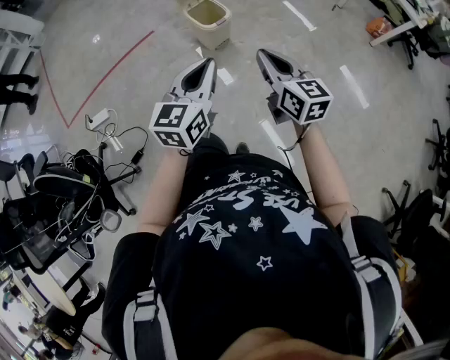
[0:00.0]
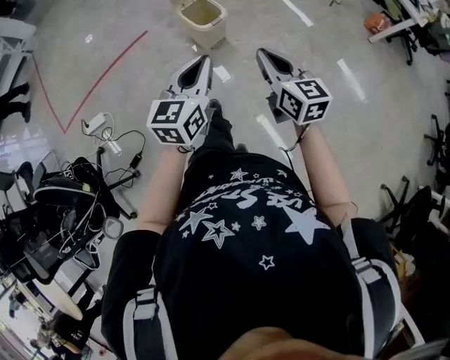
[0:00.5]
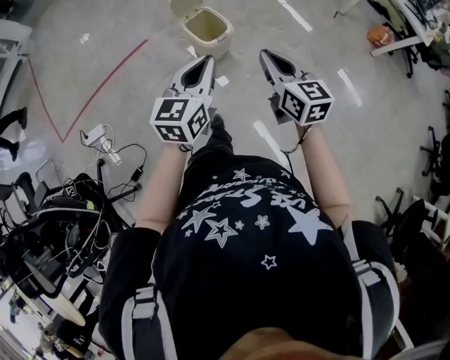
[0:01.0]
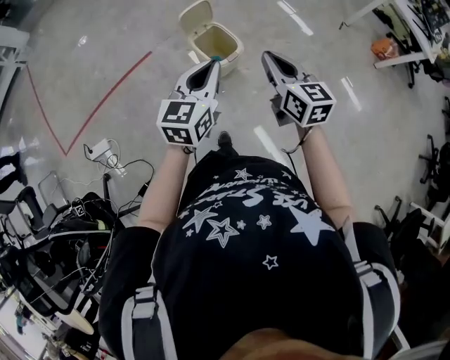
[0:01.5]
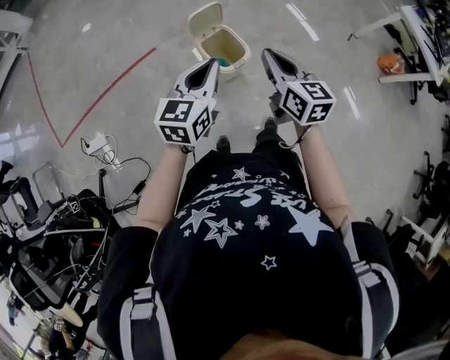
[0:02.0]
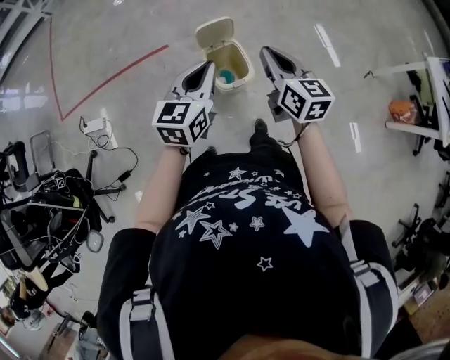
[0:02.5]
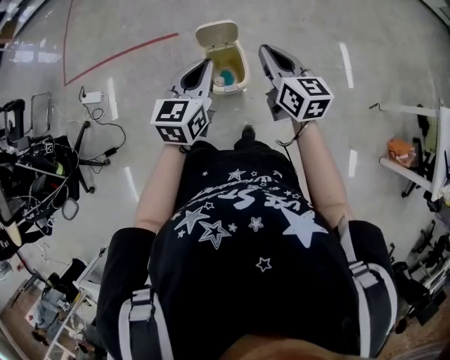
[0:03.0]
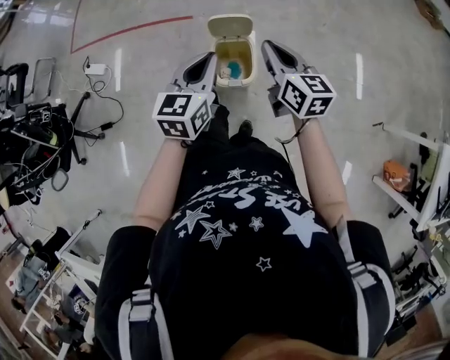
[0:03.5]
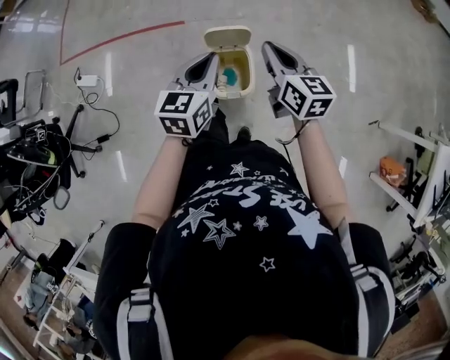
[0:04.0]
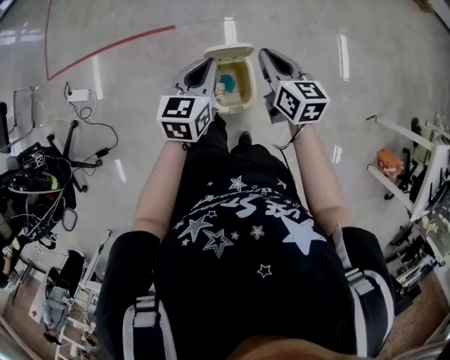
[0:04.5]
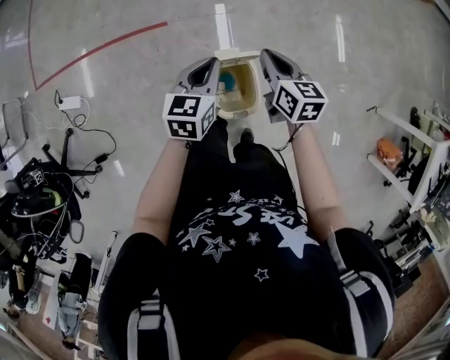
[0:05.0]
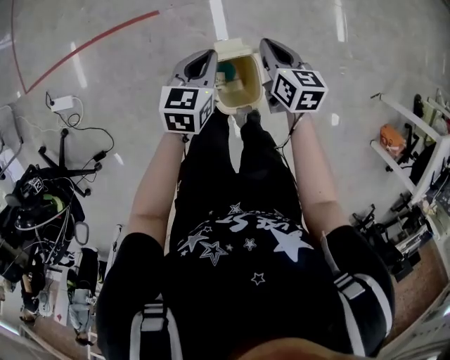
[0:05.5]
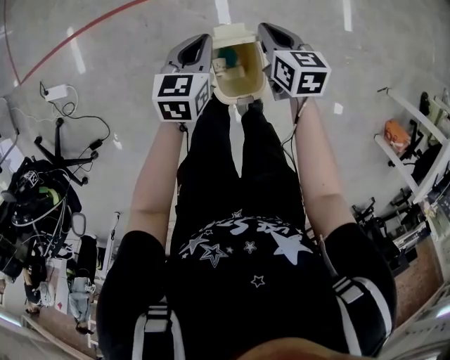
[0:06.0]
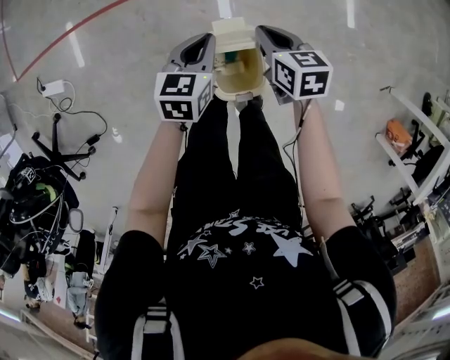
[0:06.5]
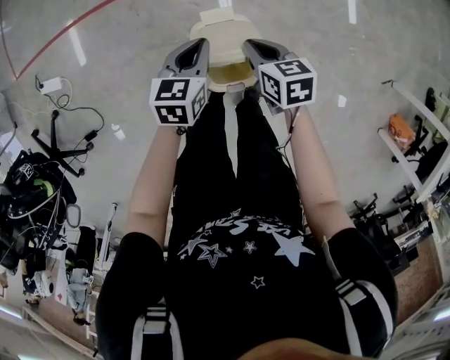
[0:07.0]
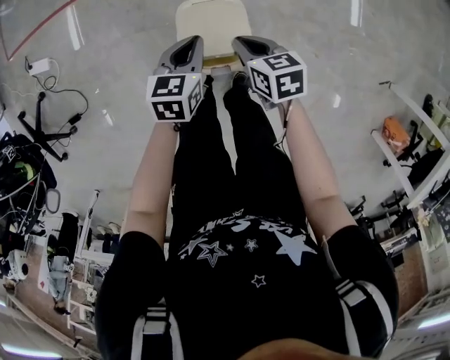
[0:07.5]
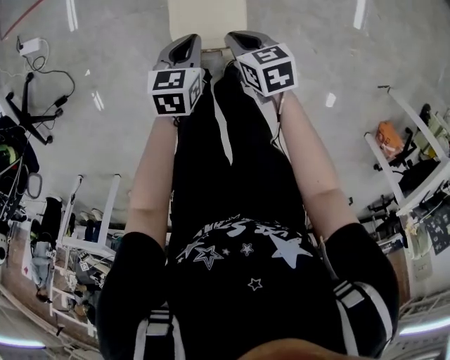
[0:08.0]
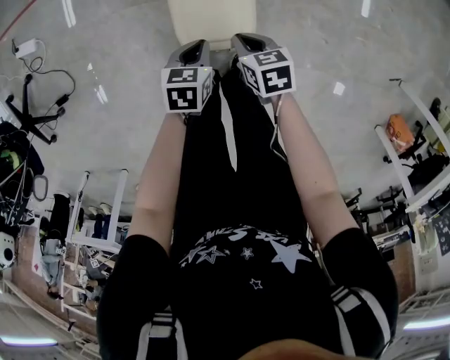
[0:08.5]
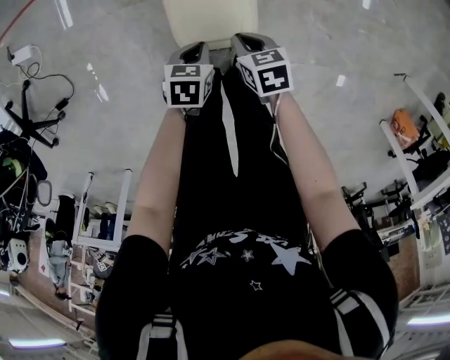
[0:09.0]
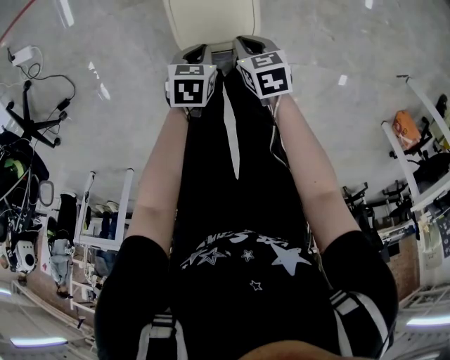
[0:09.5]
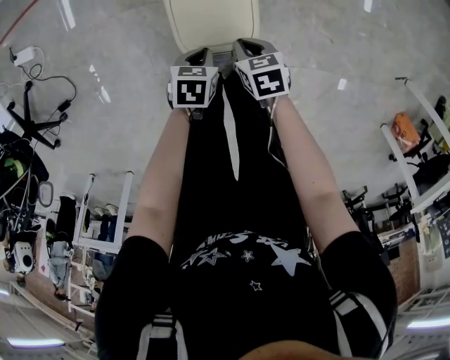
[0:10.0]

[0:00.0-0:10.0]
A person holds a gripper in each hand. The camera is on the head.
0:00.0 to 0:02.0: The two grippers go some 35 cm forward.
0:02.0 to 0:04.0: The left gripper ends up approximately 25 cm from where it was, and swivels some 30 degrees. Meanwhile the right gripper changes place by some 30 cm, and changes its angle by approximately 30 degrees.
0:04.0 to 0:06.0: Both grippers move downward and forward, about 30 cm. The right gripper turns by approximately 30 degrees.
0:06.0 to 0:08.0: The grippers both shift backward and downward by about 20 cm. The right gripper rotates roughly 30 degrees.
0:08.0 to 0:10.0: The right gripper moves downward, about 10 cm. The left gripper is displaced downward and backward by about 15 cm, and turns by approximately 20 degrees.

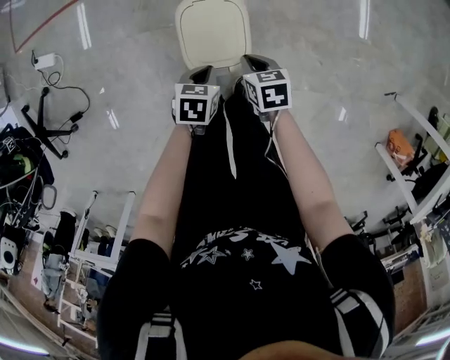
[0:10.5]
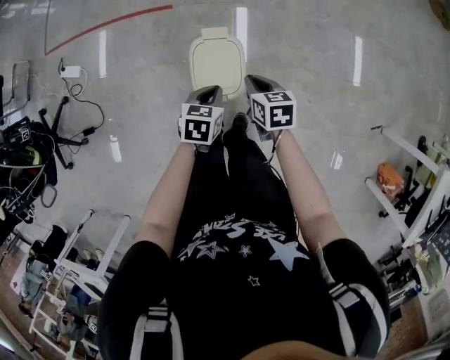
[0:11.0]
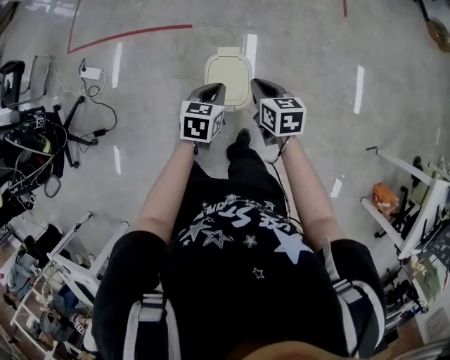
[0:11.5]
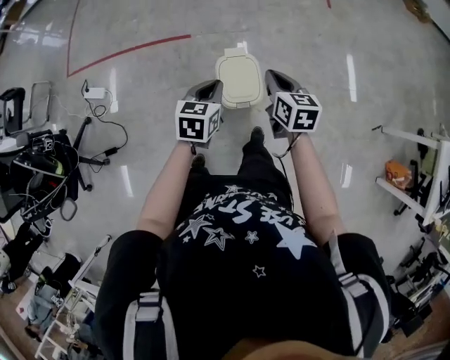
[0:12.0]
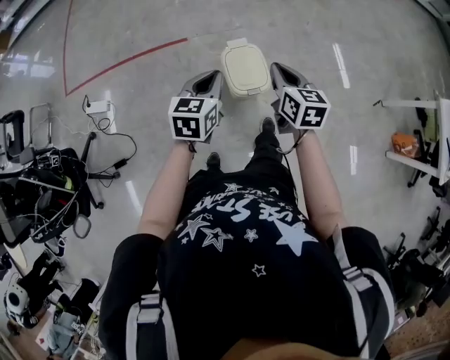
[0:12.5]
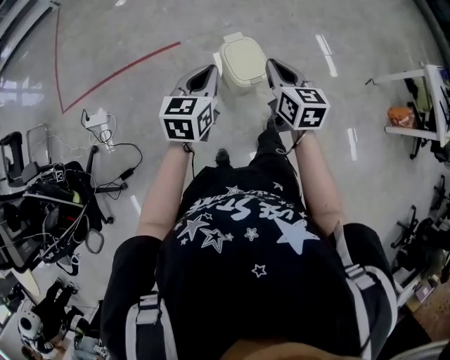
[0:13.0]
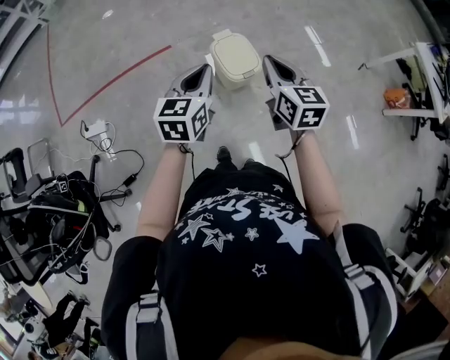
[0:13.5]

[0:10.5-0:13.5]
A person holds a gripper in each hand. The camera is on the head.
0:10.5 to 0:12.0: The grippers both shift upward by some 30 cm. The right gripper swivels some 30 degrees. Meanwhile the left gripper swivels roughly 30 degrees.
0:12.0 to 0:13.5: The left gripper heads backward, upward and to the left, covering approximately 20 cm, and turns by about 20 degrees. The right gripper shifts roughly 25 cm backward and upward, and turns by some 20 degrees.
